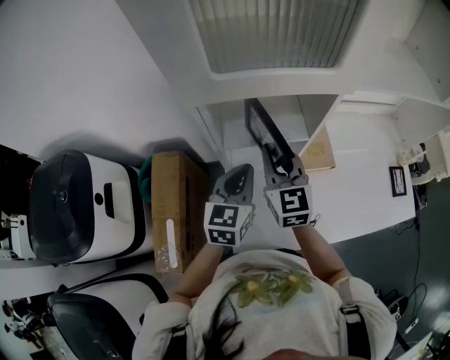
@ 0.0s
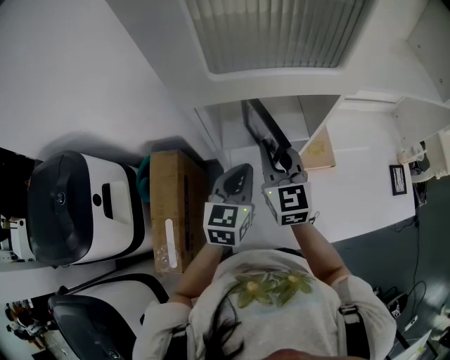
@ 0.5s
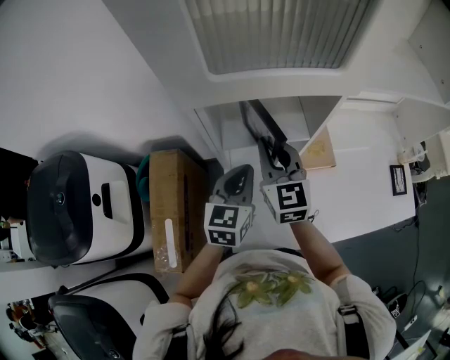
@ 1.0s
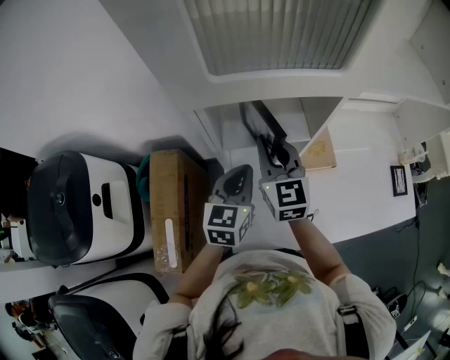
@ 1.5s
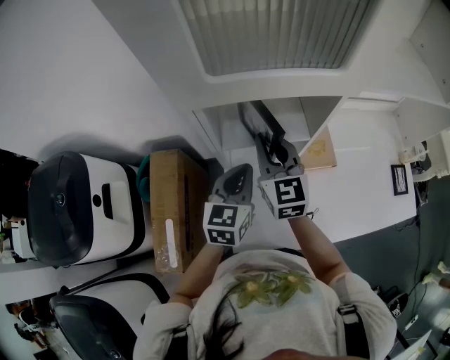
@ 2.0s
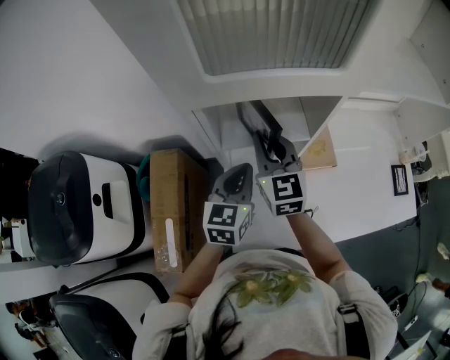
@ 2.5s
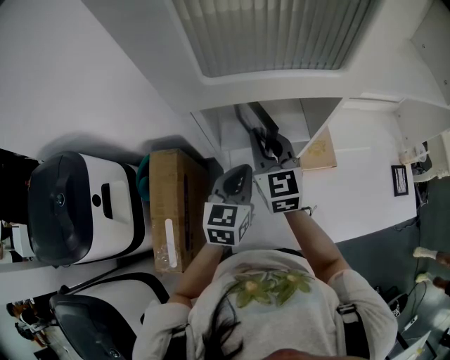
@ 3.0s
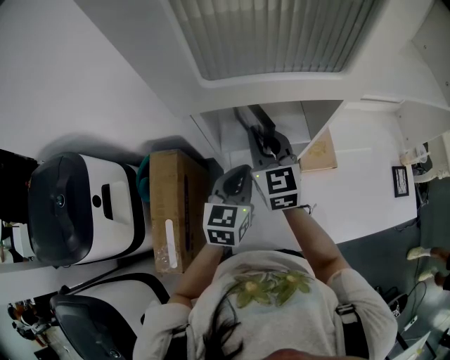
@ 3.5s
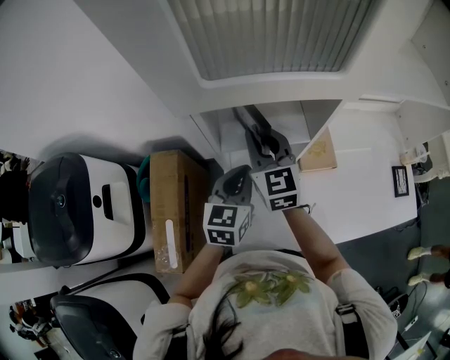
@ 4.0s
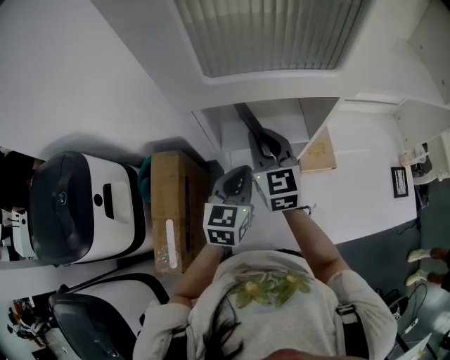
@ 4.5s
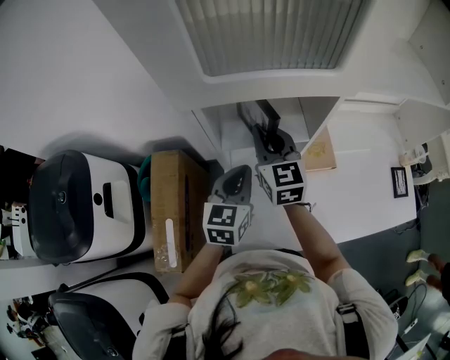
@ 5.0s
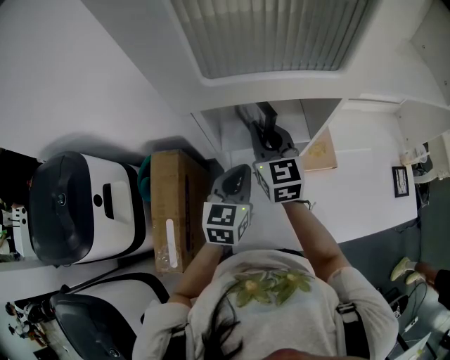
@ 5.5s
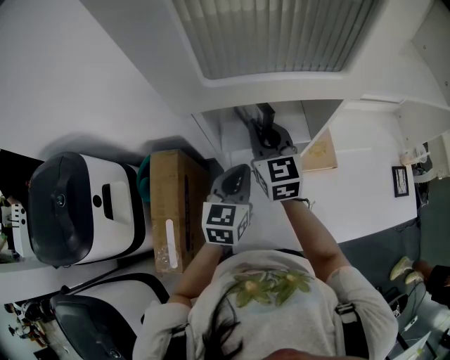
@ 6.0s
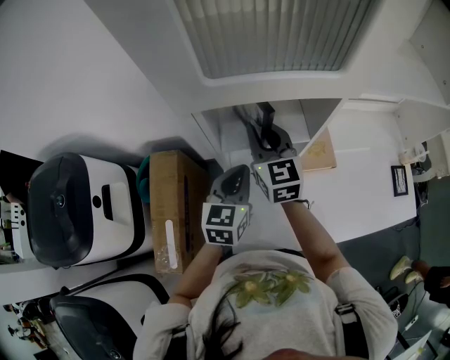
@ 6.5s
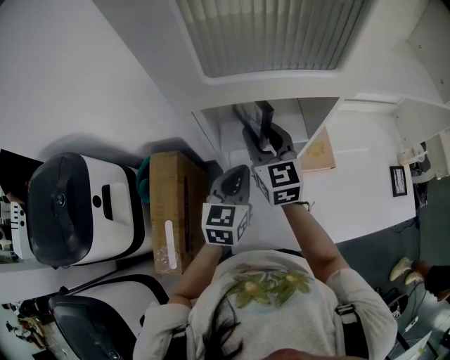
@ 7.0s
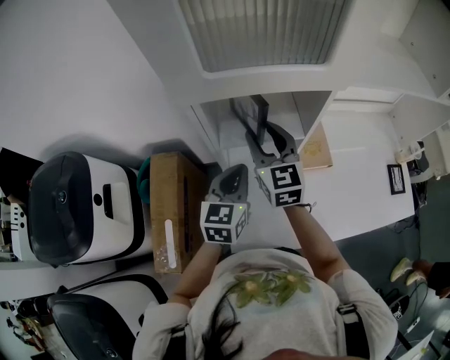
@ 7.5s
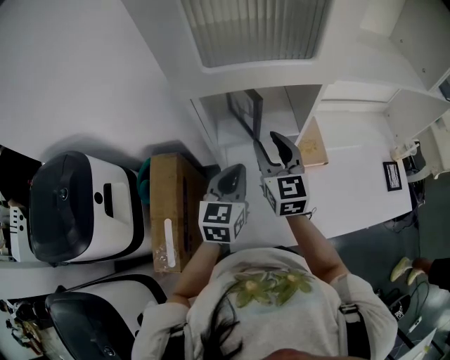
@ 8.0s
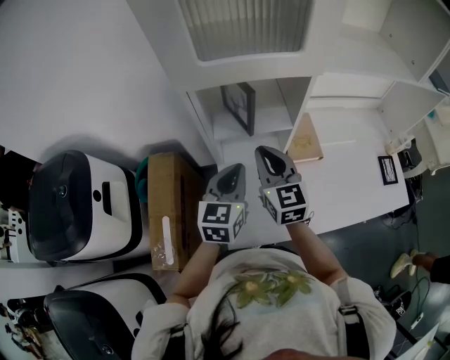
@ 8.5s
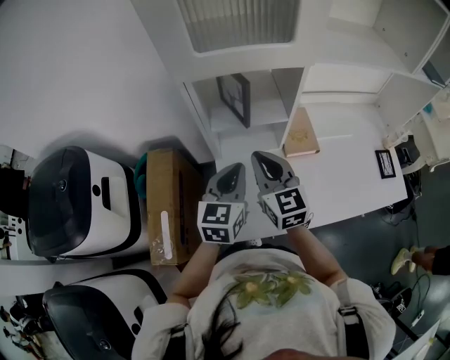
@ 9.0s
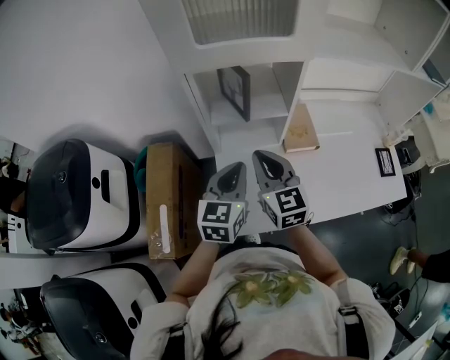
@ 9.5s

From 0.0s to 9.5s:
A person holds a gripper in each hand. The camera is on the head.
From 0.0s to 2.0s: The grippers make only small movements.
From 2.0s to 5.5s: The grippers stay close to where they were, moving slightly.
From 5.5s to 7.5s: The right gripper opens.
From 7.5s to 9.5s: The left gripper shifts approximately 10 cm backward. The right gripper goes approximately 15 cm backward, and closes its fingers.

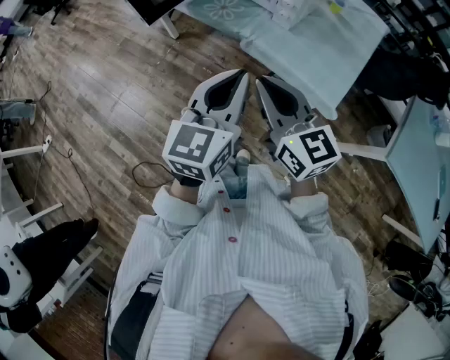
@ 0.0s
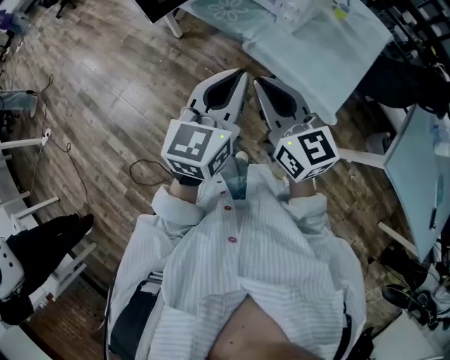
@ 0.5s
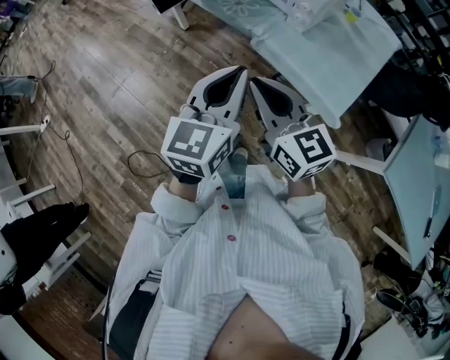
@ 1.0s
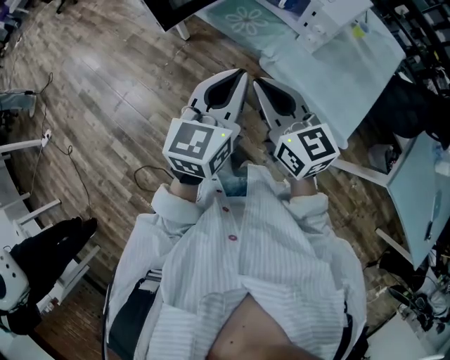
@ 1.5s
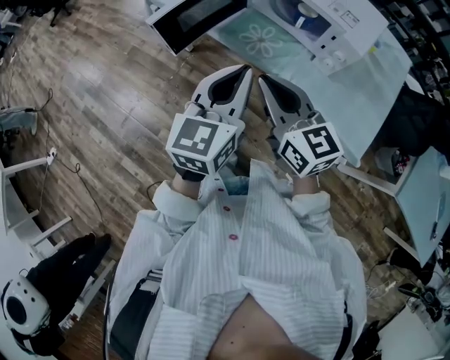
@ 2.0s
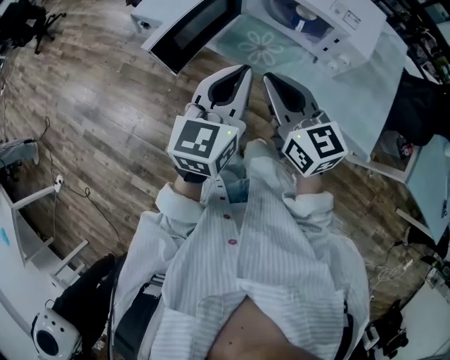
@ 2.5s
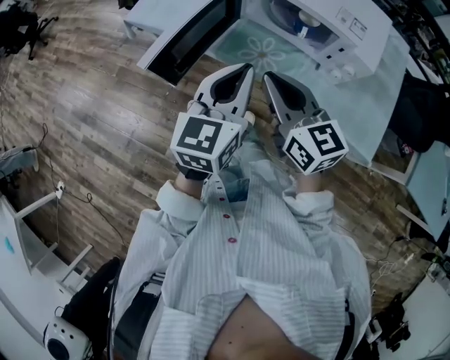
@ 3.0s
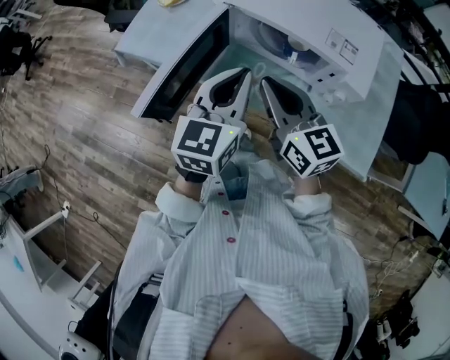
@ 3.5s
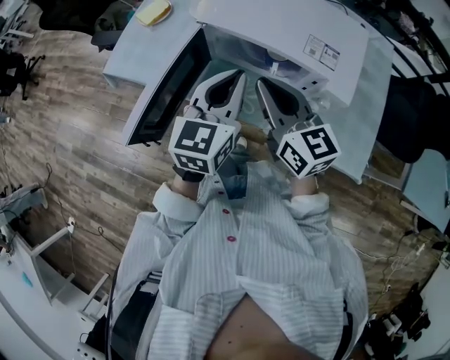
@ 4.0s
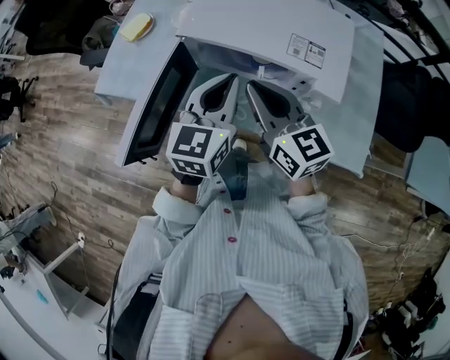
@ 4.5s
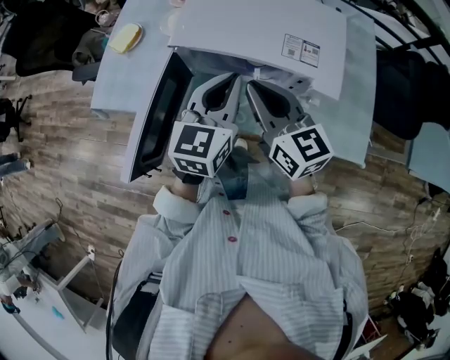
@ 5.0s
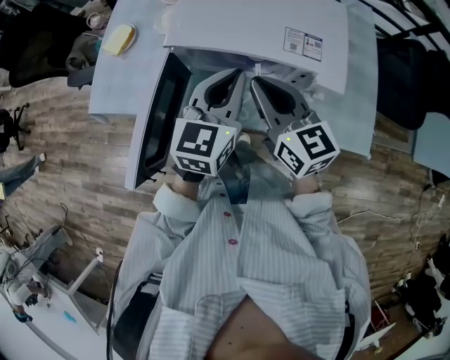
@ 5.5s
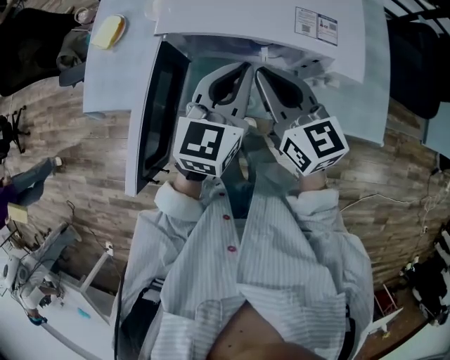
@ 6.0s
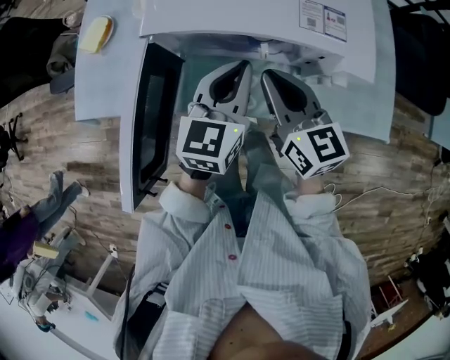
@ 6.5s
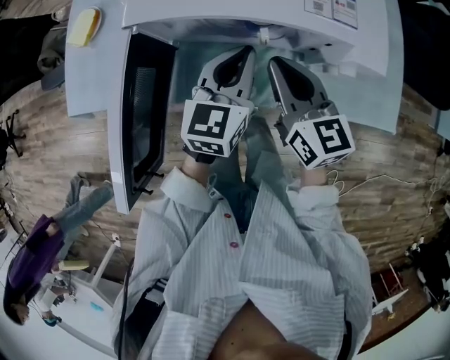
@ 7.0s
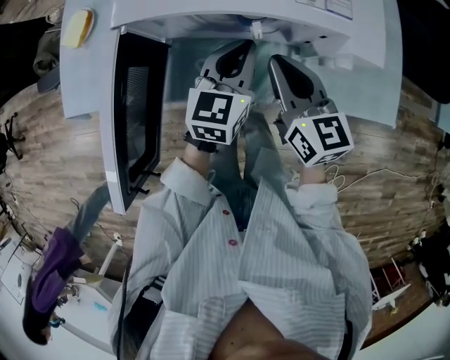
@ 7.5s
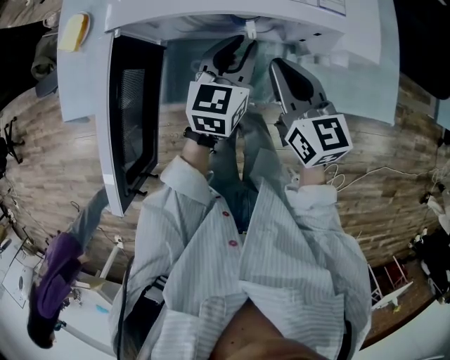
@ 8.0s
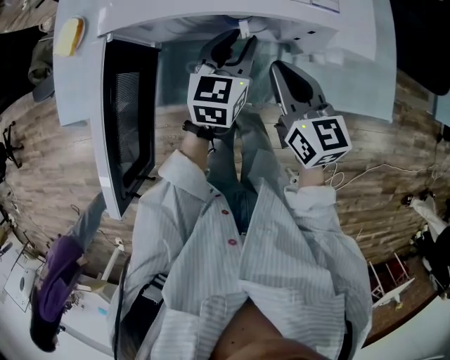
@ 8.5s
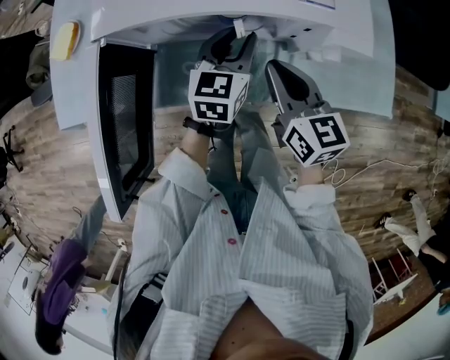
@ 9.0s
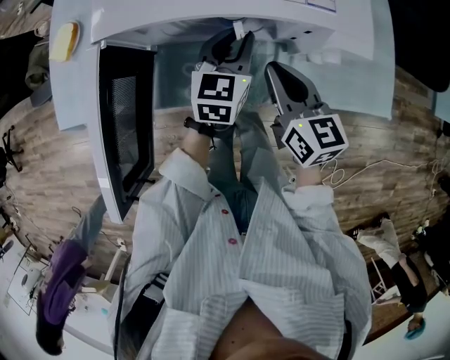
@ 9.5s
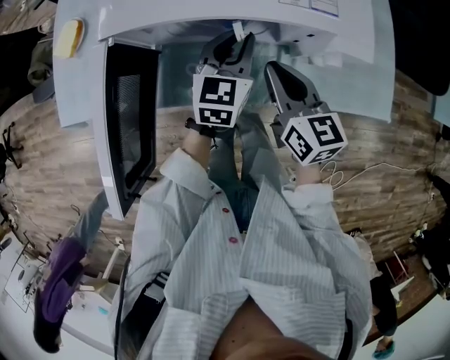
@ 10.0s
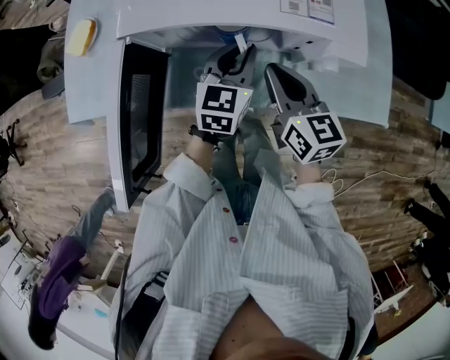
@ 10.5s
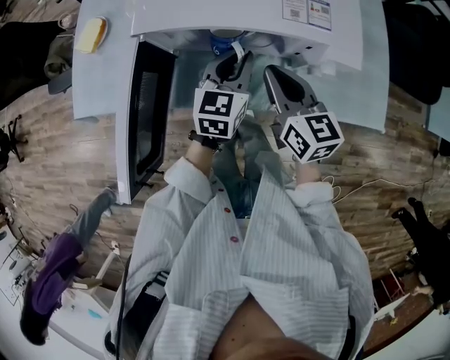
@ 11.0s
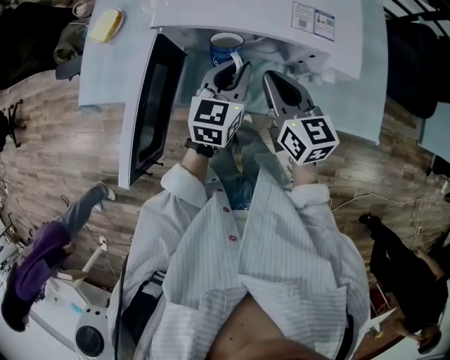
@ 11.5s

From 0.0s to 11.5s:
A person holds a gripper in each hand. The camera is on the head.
From 0.0s to 2.0s: Both grippers travel together forward and to the left, roughly 25 cm.
From 2.0s to 4.0s: Both grippers travel together forward, about 25 cm.
From 4.0s to 6.0s: The two grippers go approximately 5 cm downward.
From 6.0s to 7.5s: The right gripper goes some 10 cm downward and to the right. Meanwhile the left gripper shifts approximately 15 cm downward.
From 7.5s to 9.5s: The left gripper ends up some 5 cm from where it was.
From 9.5s to 11.5s: The left gripper travels upward, to the left and backward by about 10 cm, while the right gripper travels upward by roughly 5 cm.

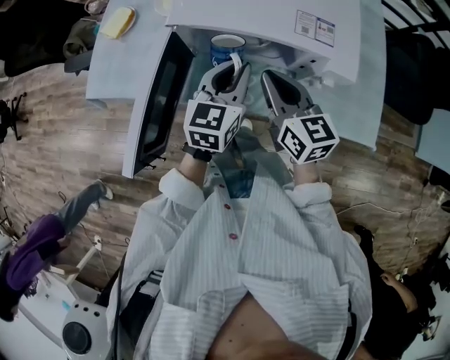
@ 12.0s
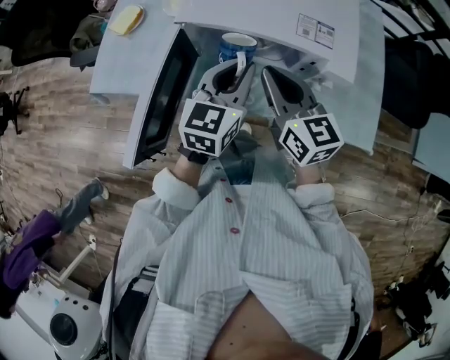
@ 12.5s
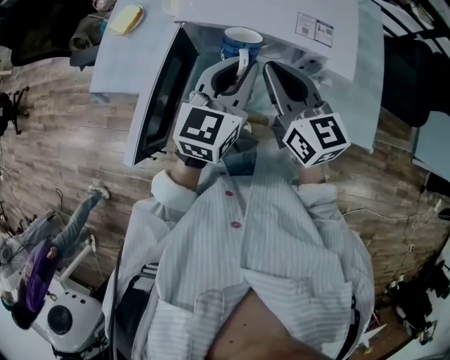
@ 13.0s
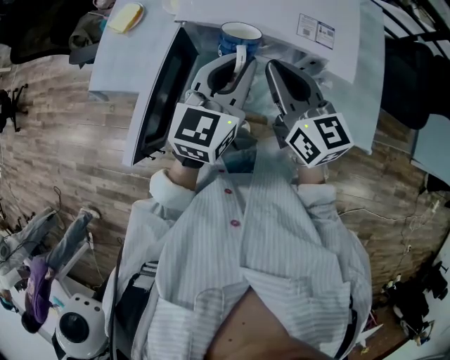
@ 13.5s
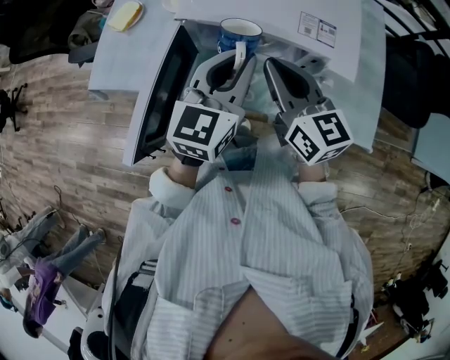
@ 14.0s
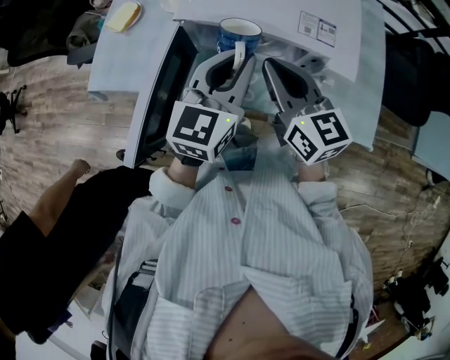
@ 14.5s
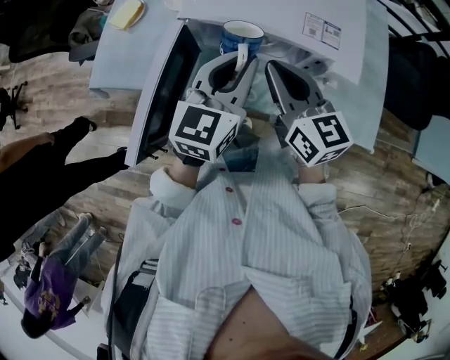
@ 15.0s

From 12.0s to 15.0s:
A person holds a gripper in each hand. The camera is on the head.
From 12.0s to 13.5s: Both grippers move upward, about 10 cm.
From 13.5s to 15.0s: There are only small adjustments of the grippers.

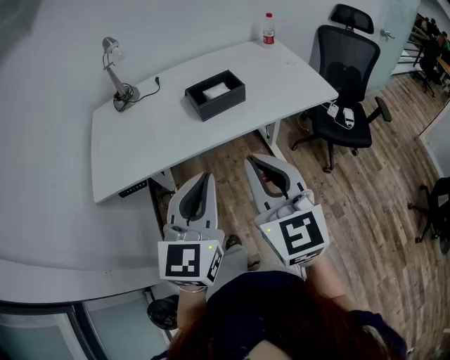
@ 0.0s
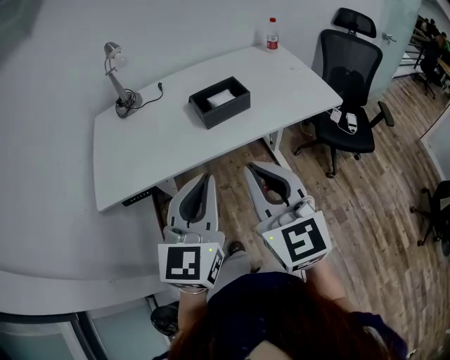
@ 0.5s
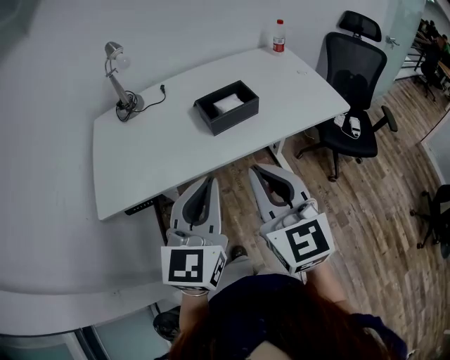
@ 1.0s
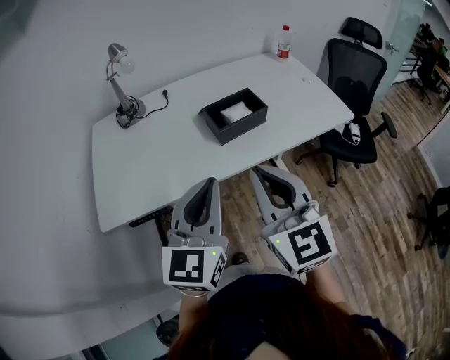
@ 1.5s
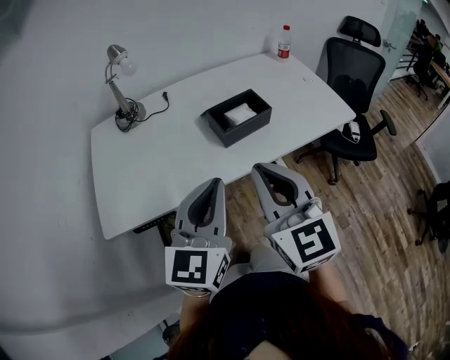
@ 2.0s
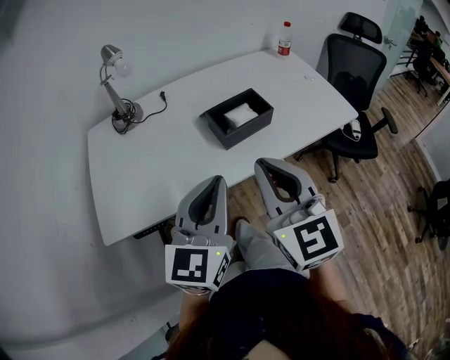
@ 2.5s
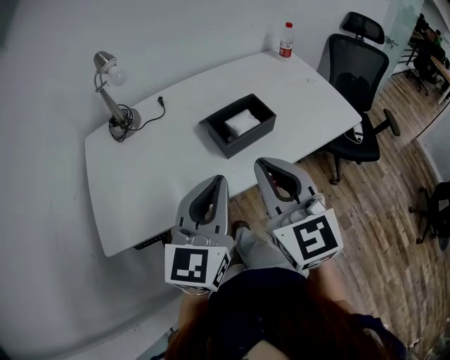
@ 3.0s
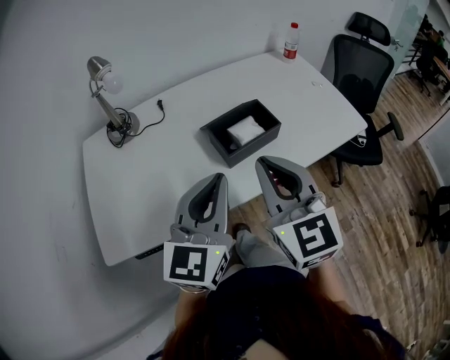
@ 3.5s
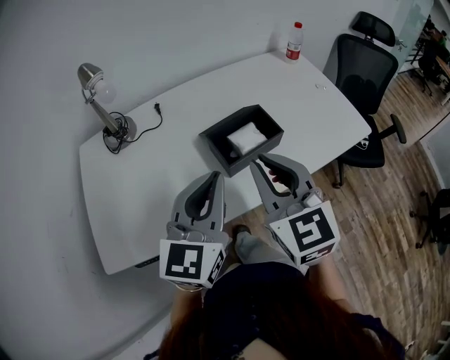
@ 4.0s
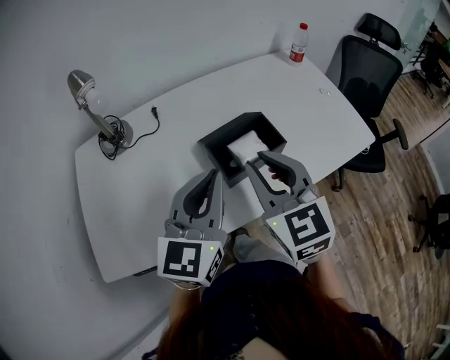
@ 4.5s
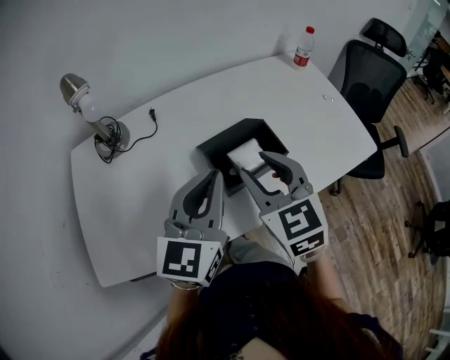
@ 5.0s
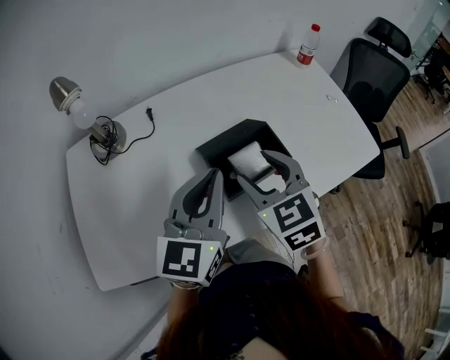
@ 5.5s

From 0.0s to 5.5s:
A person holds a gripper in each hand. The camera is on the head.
From 0.0s to 2.0s: Both grippers travel together forward and to the left, some 15 cm.
From 2.0s to 3.5s: Both grippers move forward, some 10 cm.
From 3.5s to 5.5s: The right gripper travels forward and downward by roughly 20 cm, turns by approximately 20 degrees, and opens up. The left gripper travels forward by about 15 cm.
